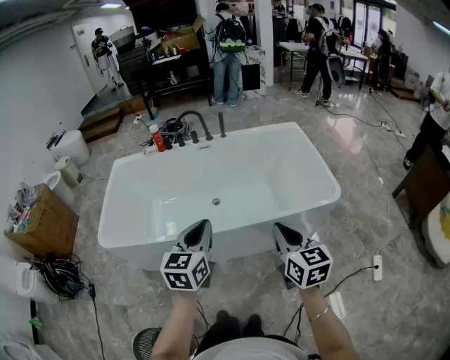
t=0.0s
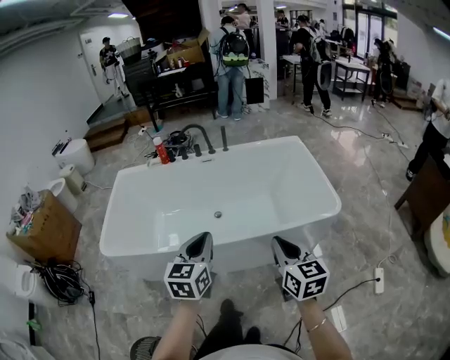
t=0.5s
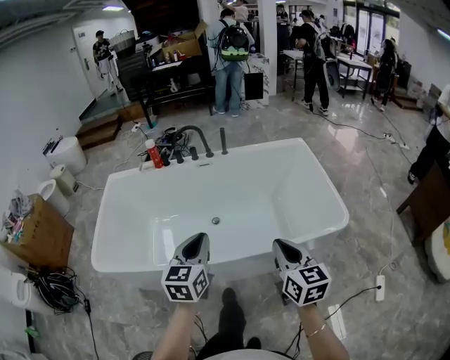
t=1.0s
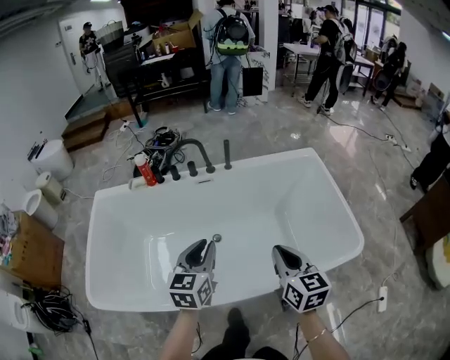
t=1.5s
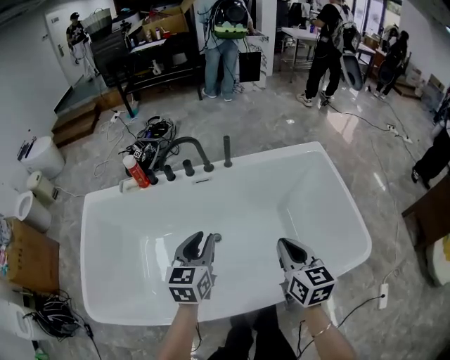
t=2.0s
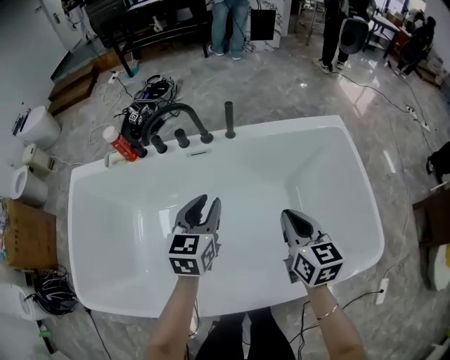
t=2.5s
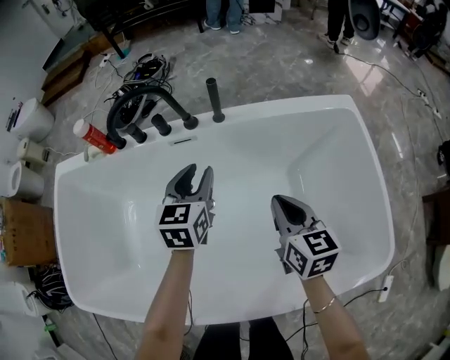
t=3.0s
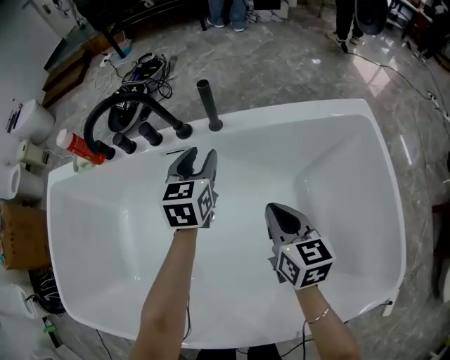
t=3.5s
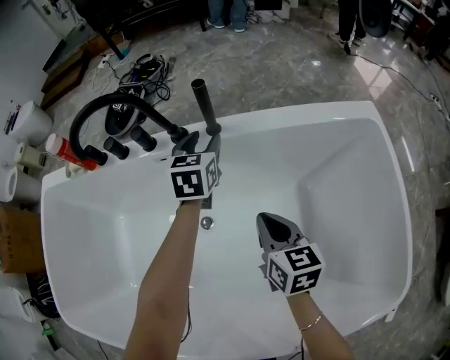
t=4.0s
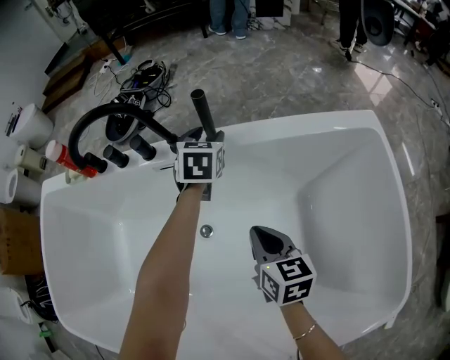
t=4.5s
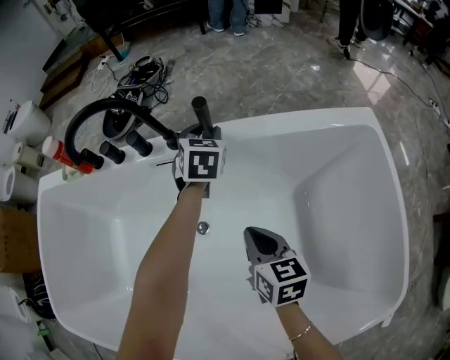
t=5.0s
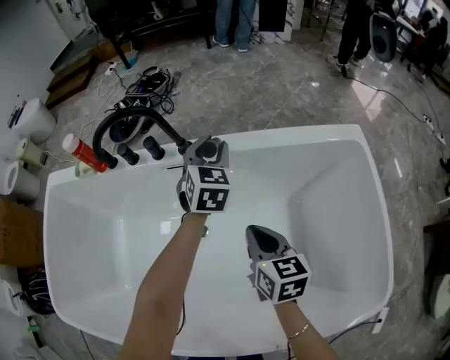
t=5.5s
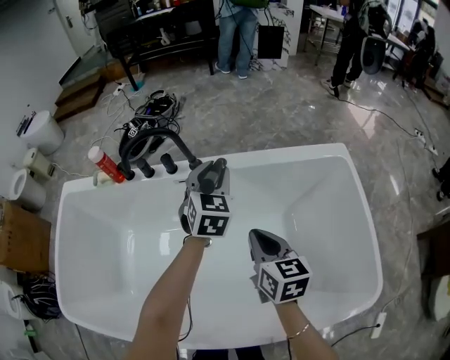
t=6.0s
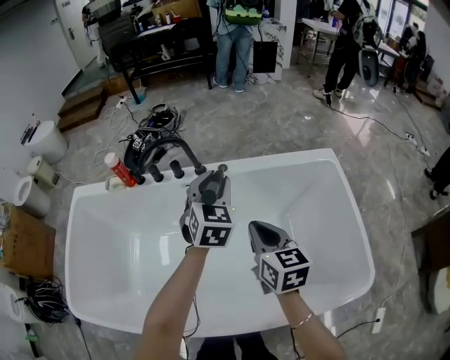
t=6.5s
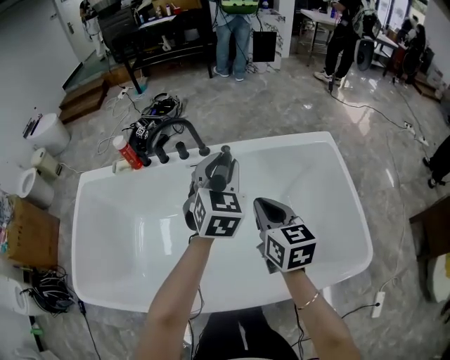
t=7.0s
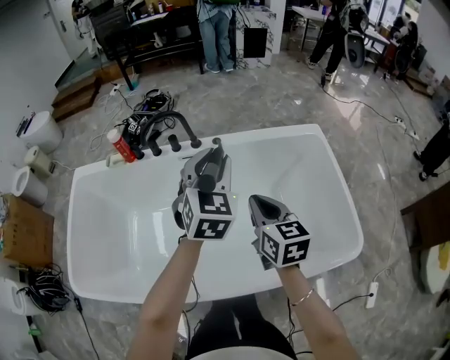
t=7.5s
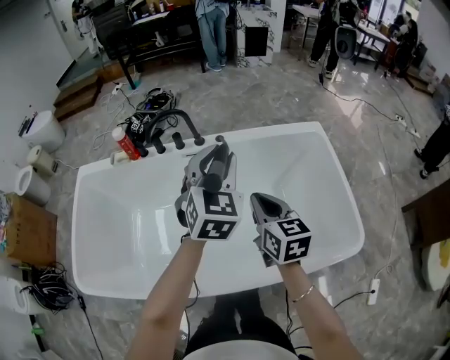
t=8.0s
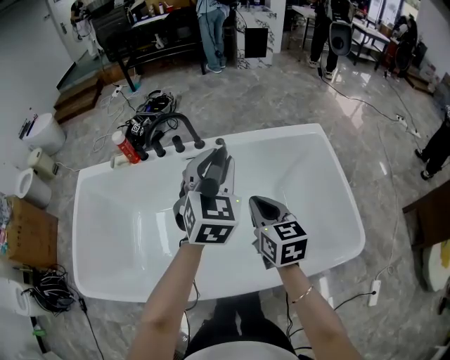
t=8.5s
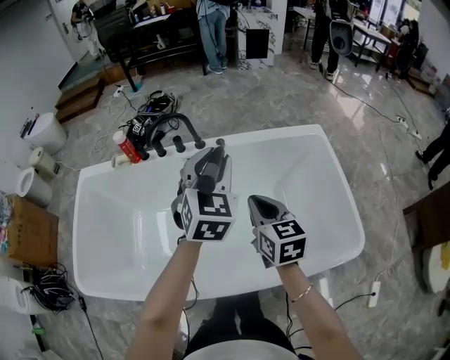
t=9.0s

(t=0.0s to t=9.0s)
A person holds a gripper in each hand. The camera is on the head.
t=0.0s - t=2.0s: The pair of grippers is taken forward, some 60 cm. The left gripper opens.
t=2.0s - t=4.5s: Both grippers are carried forward, roughly 50 cm. The two grippers go about 40 cm downward. The left gripper changes its angle by about 20 degrees, and opens its fingers.
t=4.5s - t=7.0s: Both grippers move upward and backward, some 50 cm. The left gripper turns by some 30 degrees.
t=7.0s - t=9.0s: The left gripper shifts about 10 cm backward and upward; the right gripper moves backward, some 5 cm.

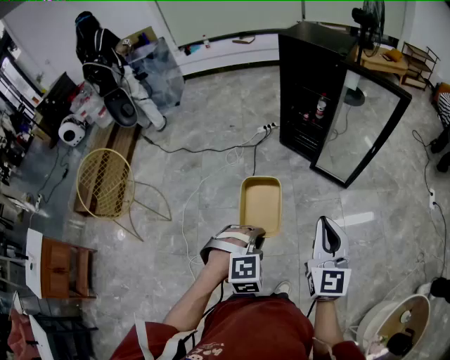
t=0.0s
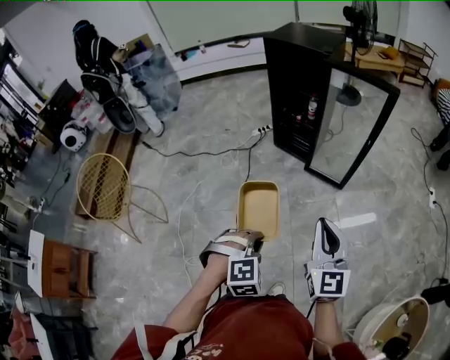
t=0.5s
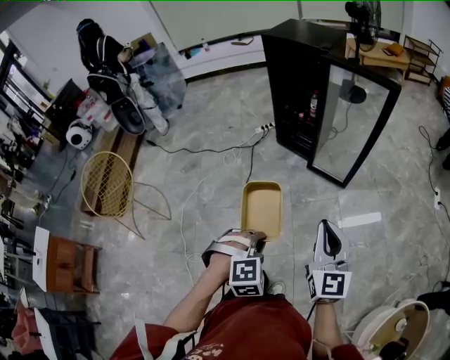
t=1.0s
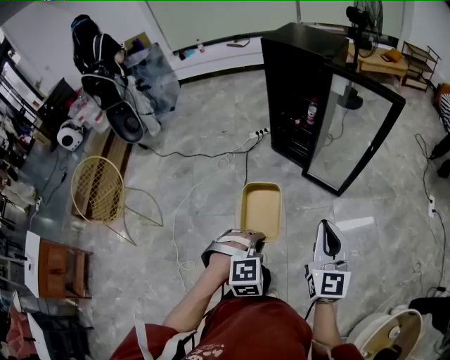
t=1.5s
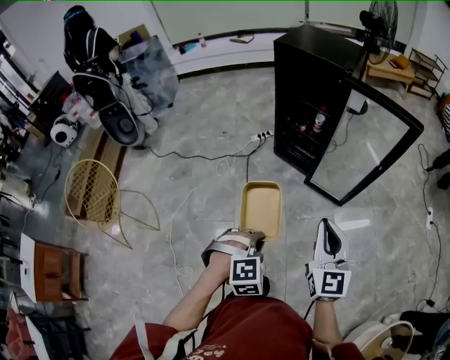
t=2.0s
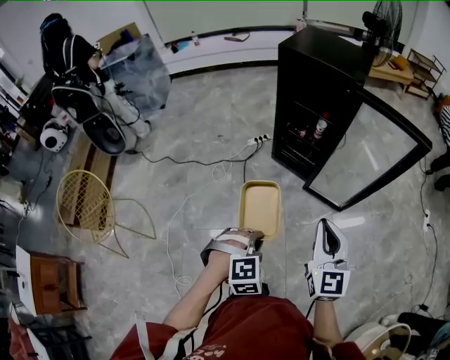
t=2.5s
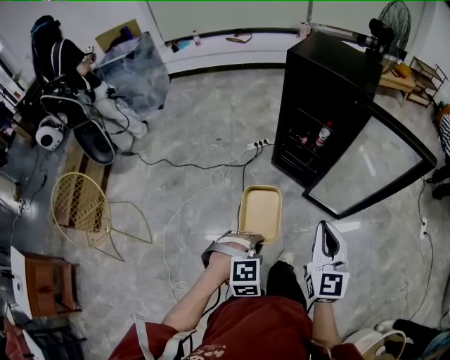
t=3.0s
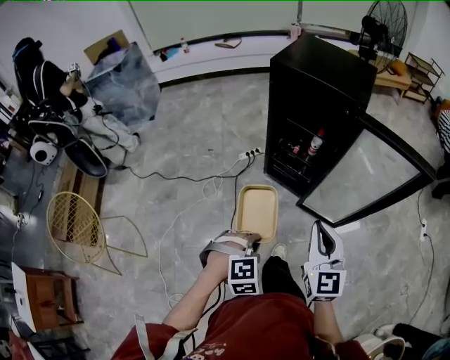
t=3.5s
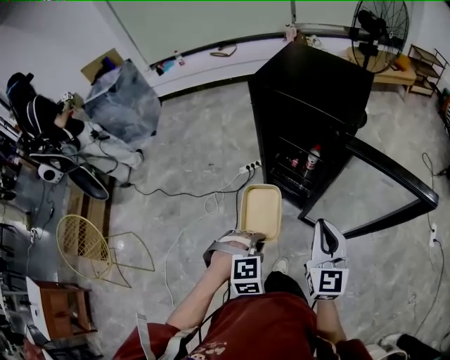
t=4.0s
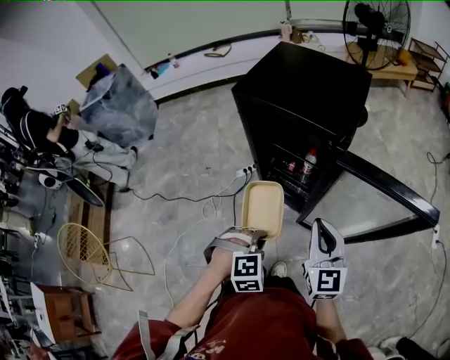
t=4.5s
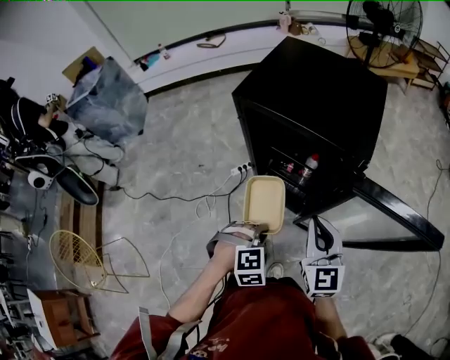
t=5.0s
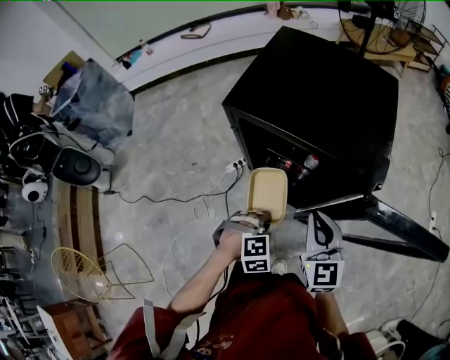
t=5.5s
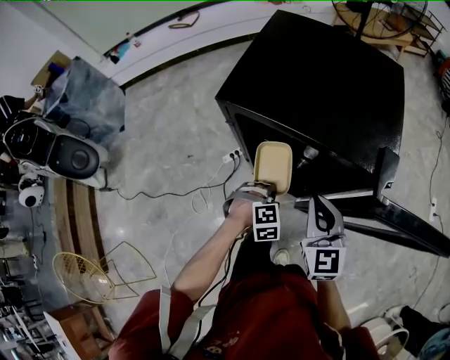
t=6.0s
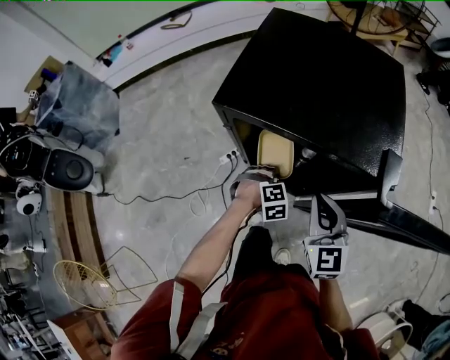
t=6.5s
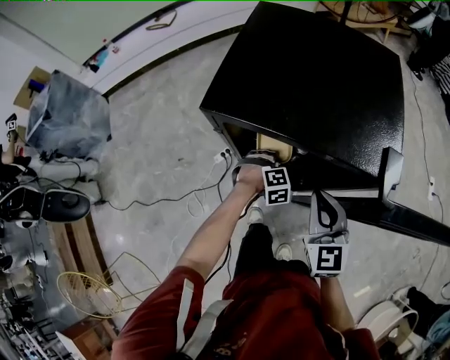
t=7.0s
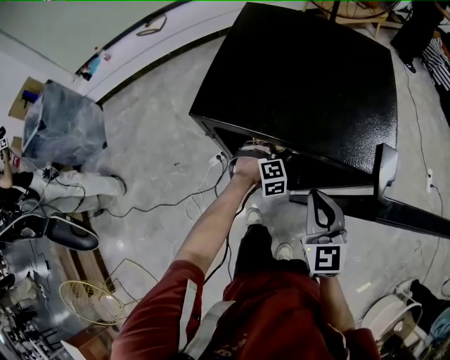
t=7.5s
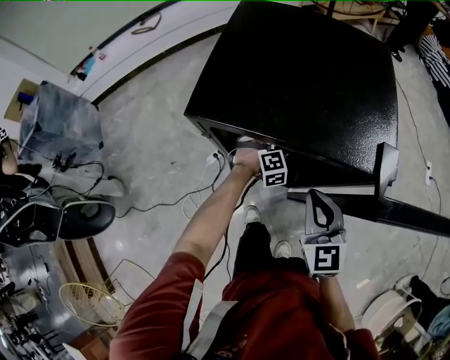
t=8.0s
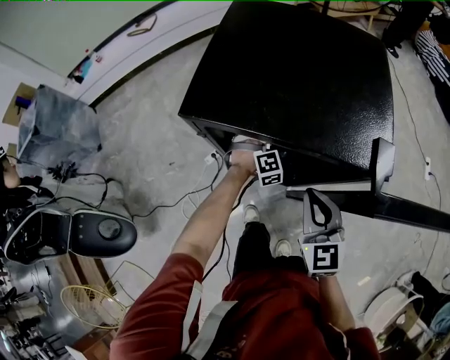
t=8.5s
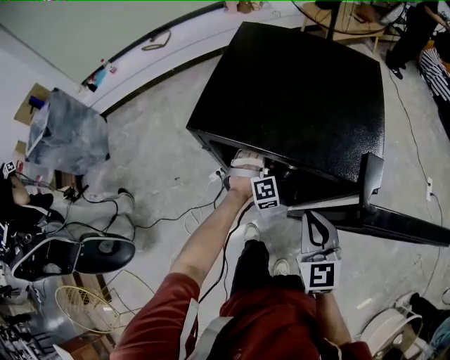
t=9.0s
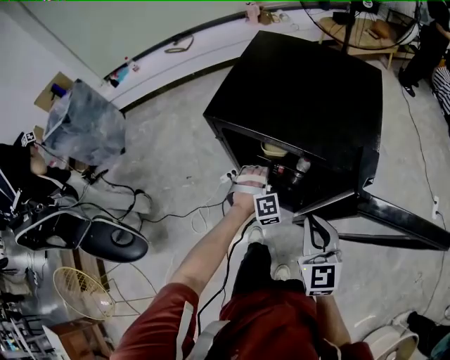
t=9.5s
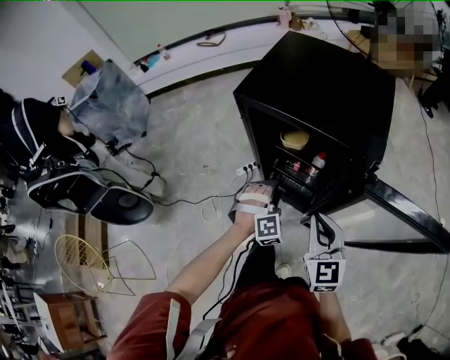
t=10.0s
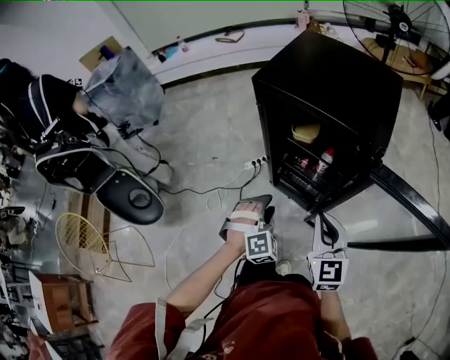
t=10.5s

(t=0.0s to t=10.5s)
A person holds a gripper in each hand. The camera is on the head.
t=0.0s - t=2.0s: Both grippers travel together forward, approximately 15 cm.
t=2.0s - t=4.0s: Both grippers travel together forward, about 35 cm.
t=4.0s - t=6.5s: The left gripper is displaced forward and downward by approximately 40 cm. Meanwhile the right gripper shifts approximately 25 cm forward.
t=6.5s - t=8.5s: The left gripper shifts some 15 cm forward, swivels some 20 degrees, and opens.
t=8.5s - t=10.5s: The right gripper is displaced backward by approximately 15 cm. Meanwhile the left gripper is displaced backward by some 30 cm, and rotates some 20 degrees.

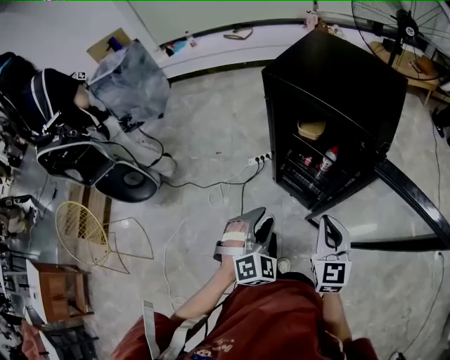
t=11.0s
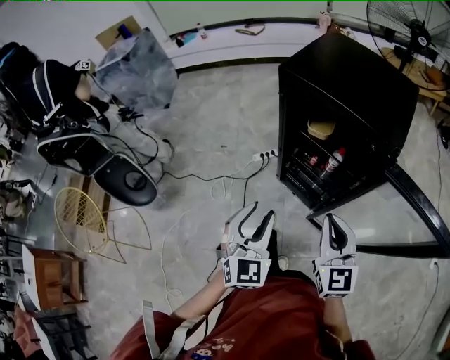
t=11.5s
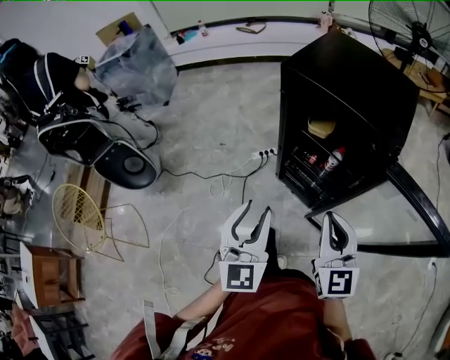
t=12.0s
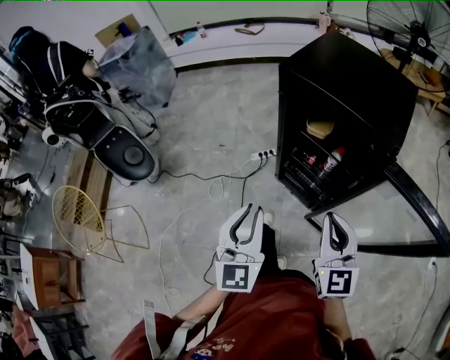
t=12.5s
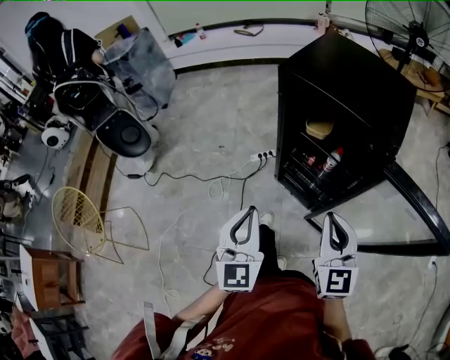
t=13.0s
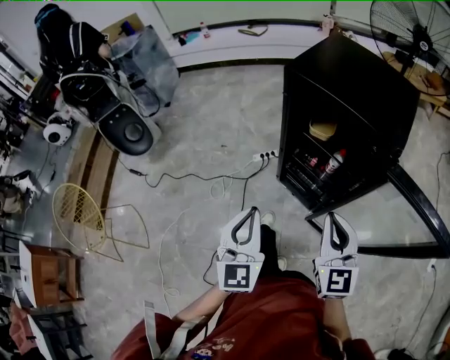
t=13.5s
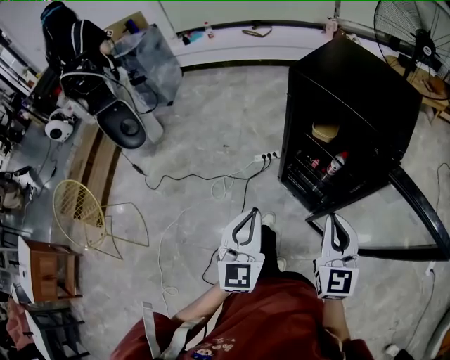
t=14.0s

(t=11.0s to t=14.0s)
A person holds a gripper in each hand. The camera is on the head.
t=11.0s - t=12.5s: The right gripper travels upward by some 5 cm, while the left gripper heads upward and to the left, covering some 10 cm, rotates around the line of its fingers by approximately 50 degrees, counterclockwise from behind, and closes.
t=12.5s - t=14.0s: The grippers make only small movements.

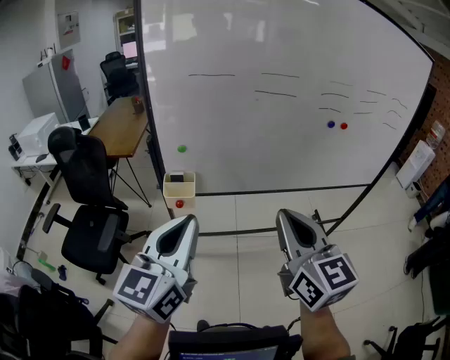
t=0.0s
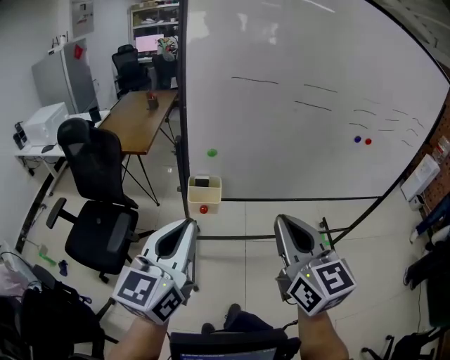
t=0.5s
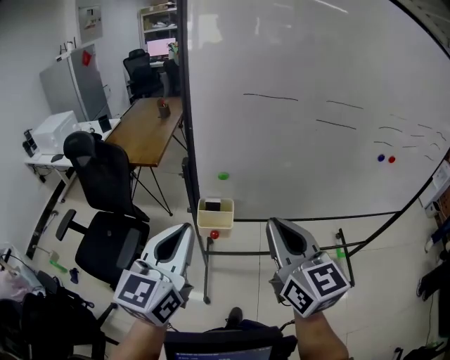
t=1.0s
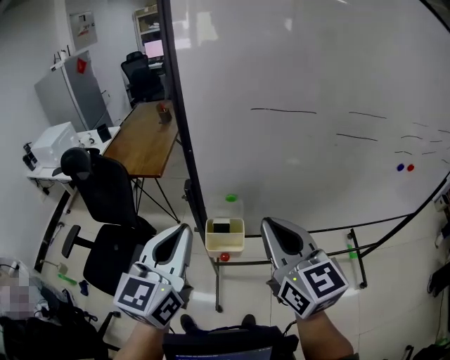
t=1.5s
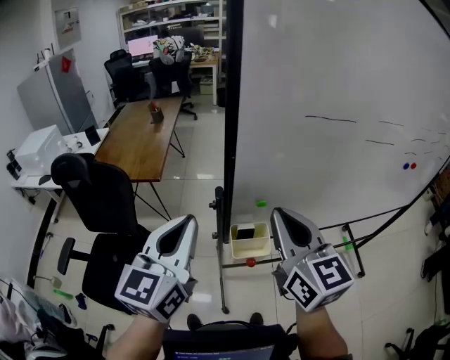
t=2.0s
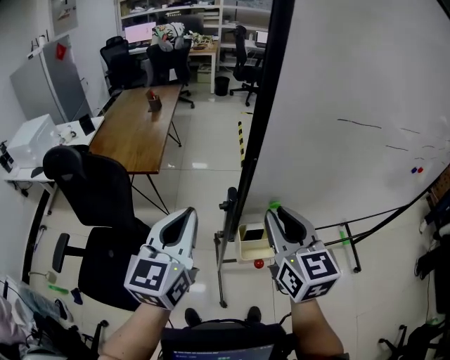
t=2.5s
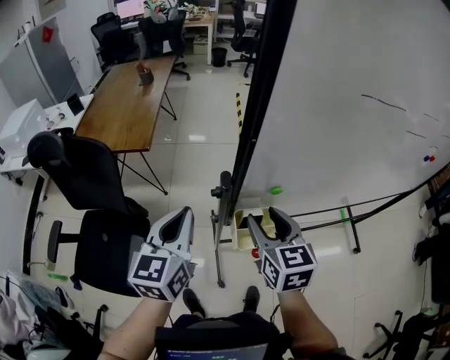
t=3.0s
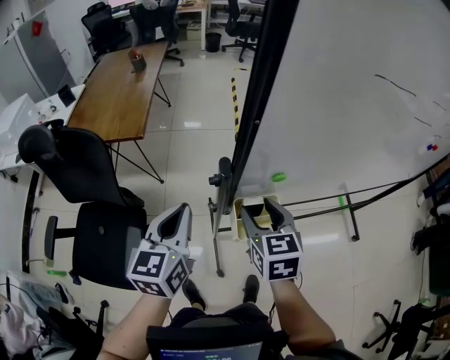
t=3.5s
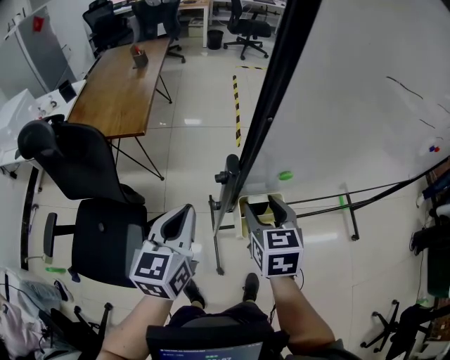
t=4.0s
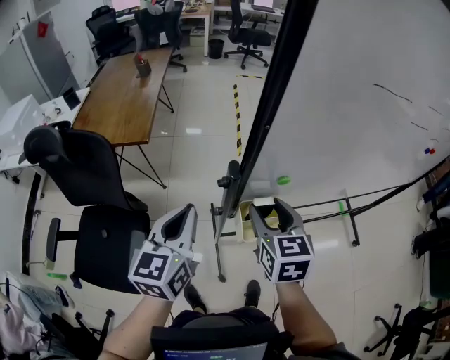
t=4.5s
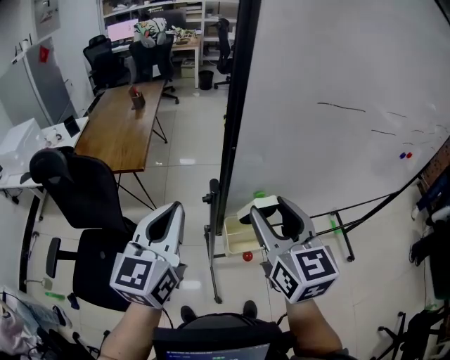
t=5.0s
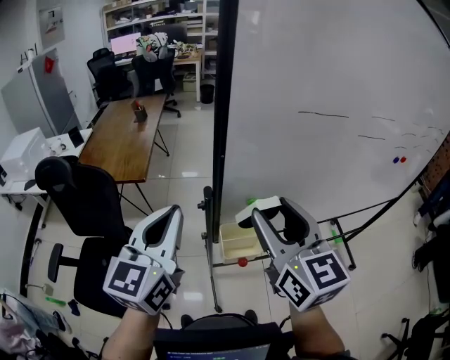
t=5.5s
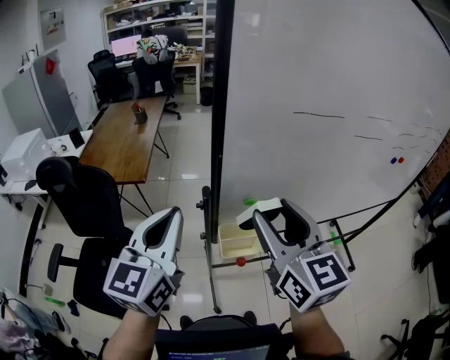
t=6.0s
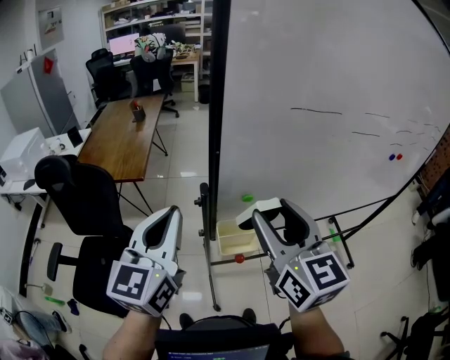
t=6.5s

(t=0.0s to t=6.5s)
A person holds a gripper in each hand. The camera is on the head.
t=0.0s - t=2.0s: The right gripper is displaced to the left and forward by some 40 cm, while the left gripper travels forward and to the left by roughly 40 cm.
t=2.0s - t=4.5s: The left gripper shifts approximately 20 cm downward and forward, while the right gripper heads downward, covering about 20 cm, rotates about 30 degrees, and opens up.
t=4.5s - t=6.5s: The right gripper is displaced upward and backward by about 25 cm, and changes its angle by some 30 degrees; the left gripper heads upward, covering approximately 15 cm.
